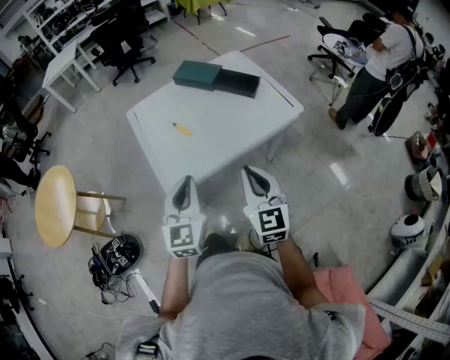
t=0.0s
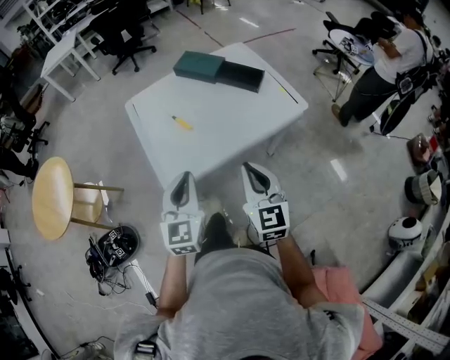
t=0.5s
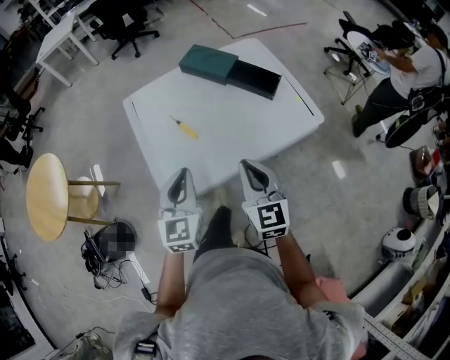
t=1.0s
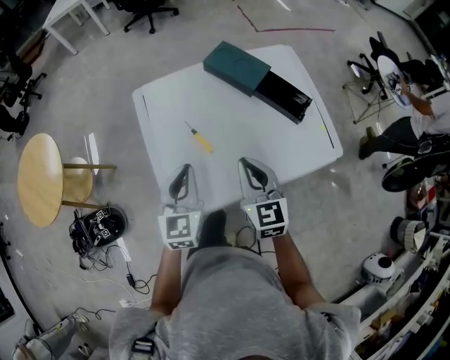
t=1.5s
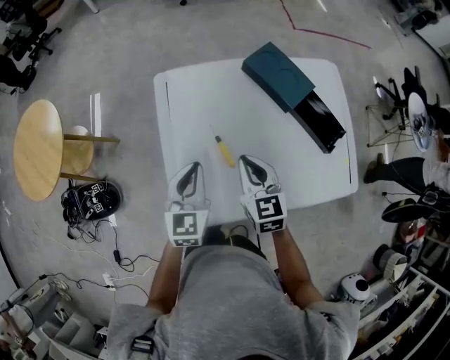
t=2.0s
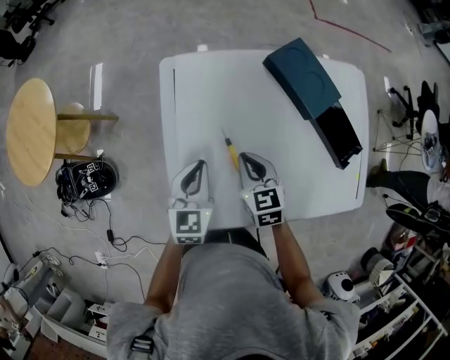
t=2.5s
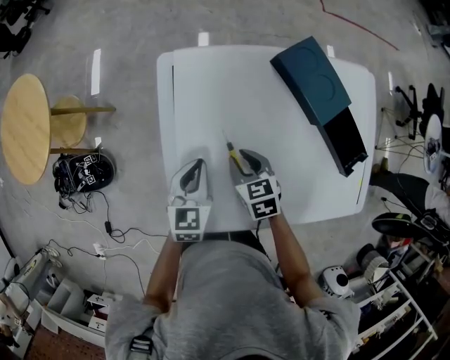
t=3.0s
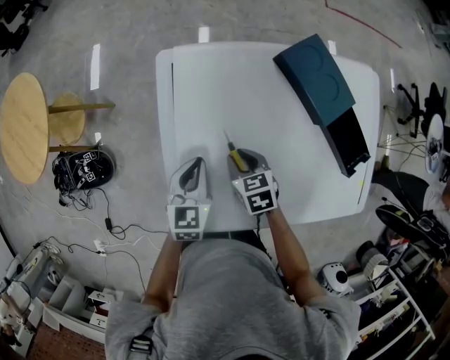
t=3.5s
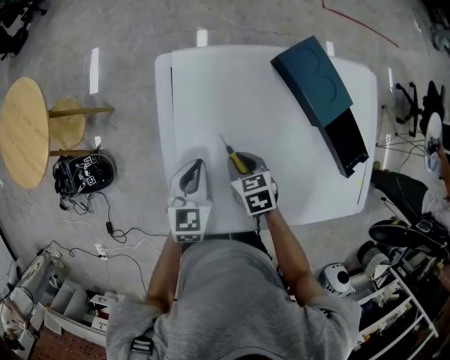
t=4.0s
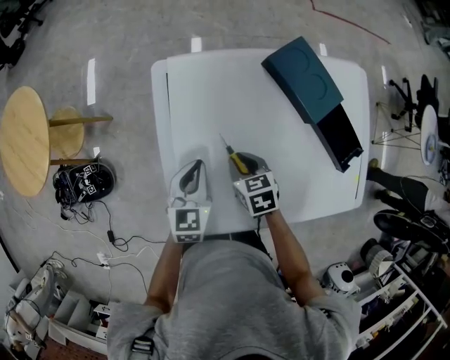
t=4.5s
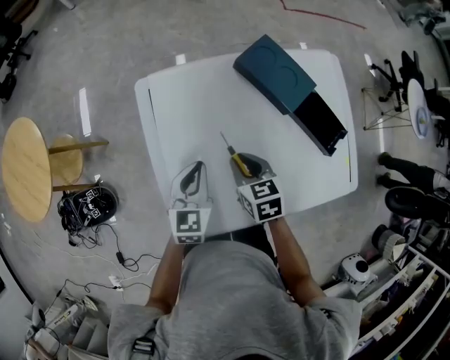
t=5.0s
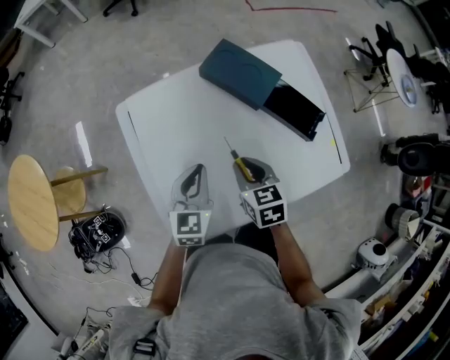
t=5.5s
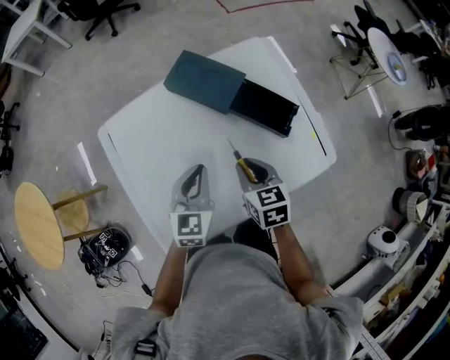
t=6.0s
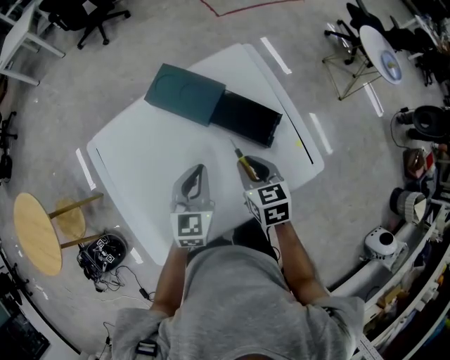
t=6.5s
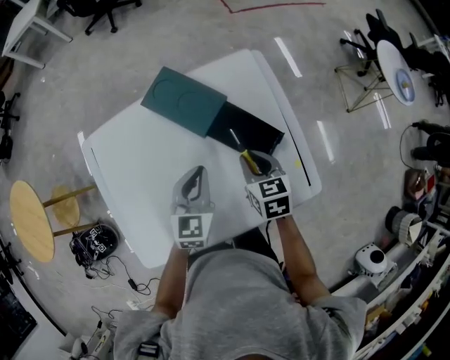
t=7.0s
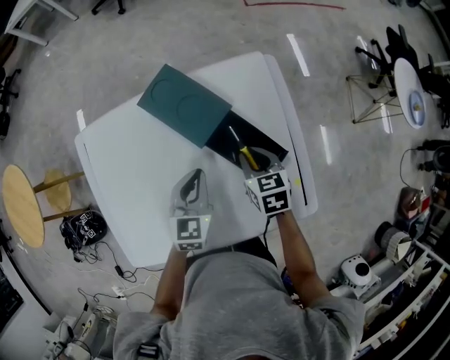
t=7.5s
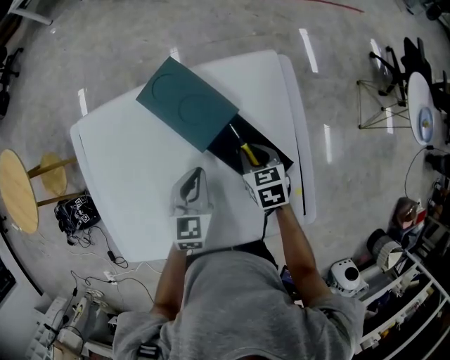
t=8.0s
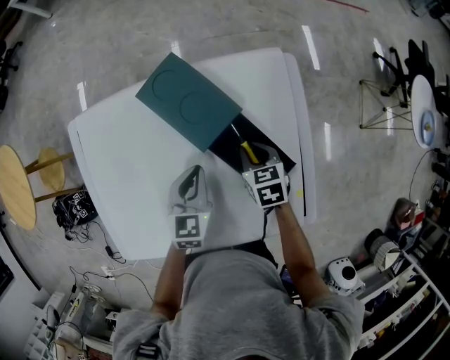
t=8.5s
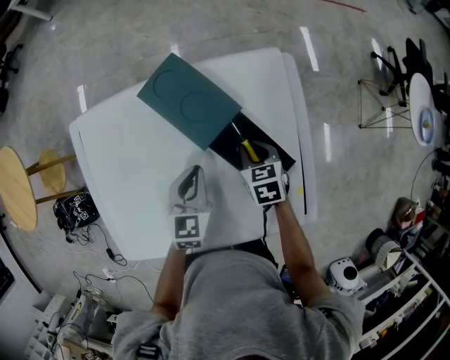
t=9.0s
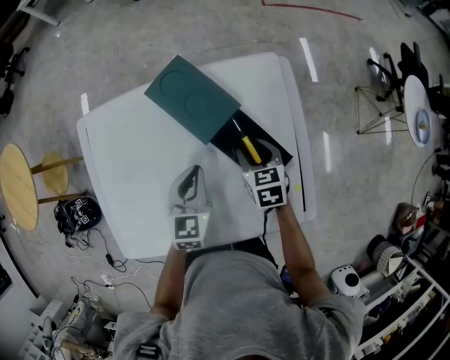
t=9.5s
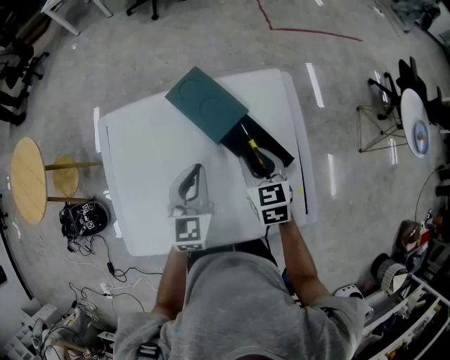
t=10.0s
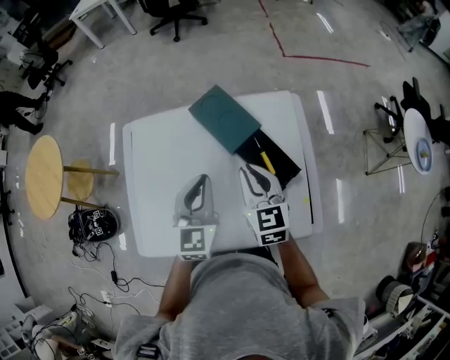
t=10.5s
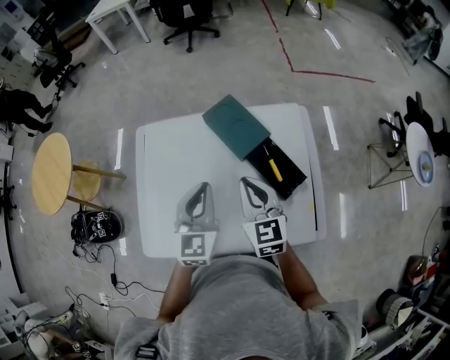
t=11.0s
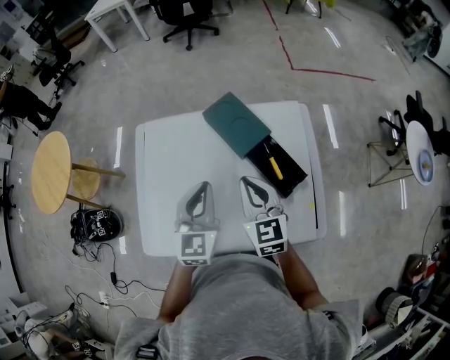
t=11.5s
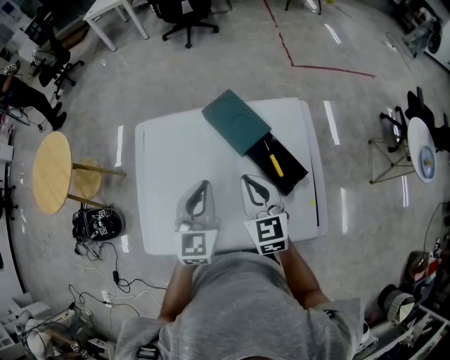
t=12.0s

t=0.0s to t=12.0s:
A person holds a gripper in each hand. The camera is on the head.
t=0.0s to t=2.0s: Both grippers move forward, approximately 35 cm. The left gripper swivels about 20 degrees. Meanwhile the right gripper rotates about 30 degrees.
t=2.0s to t=4.0s: The right gripper heads downward, covering about 15 cm, and turns by about 30 degrees; the left gripper travels downward and forward by roughly 15 cm.
t=4.0s to t=6.0s: The left gripper changes place by roughly 25 cm, and swivels about 30 degrees, while the right gripper shifts by approximately 25 cm, and changes its angle by roughly 30 degrees.
t=6.0s to t=8.0s: The left gripper shifts some 20 cm to the right, forward and downward; the right gripper heads forward, to the right and downward, covering roughly 25 cm, and swivels approximately 20 degrees.
t=8.0s to t=10.0s: The two grippers go approximately 10 cm upward.
t=10.0s to t=12.0s: Both grippers travel together upward, to the left and backward, roughly 15 cm. The right gripper closes up.

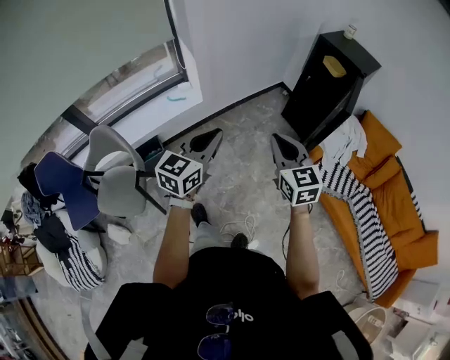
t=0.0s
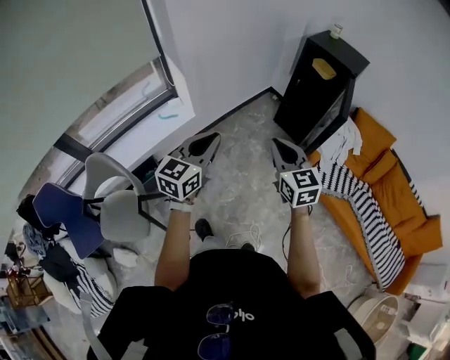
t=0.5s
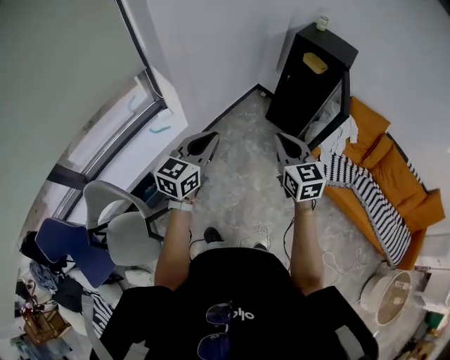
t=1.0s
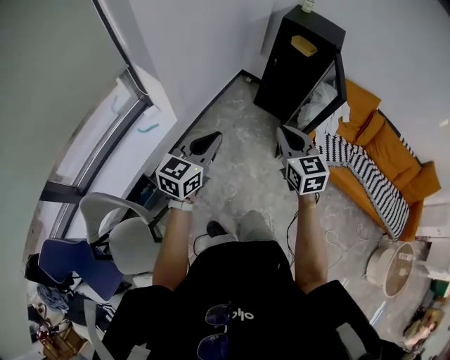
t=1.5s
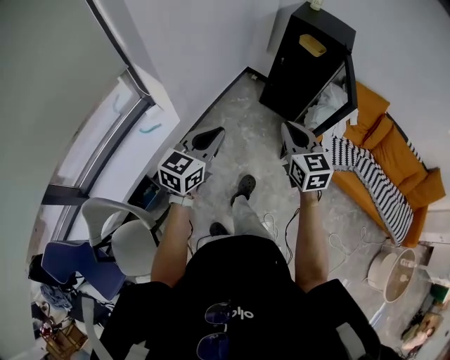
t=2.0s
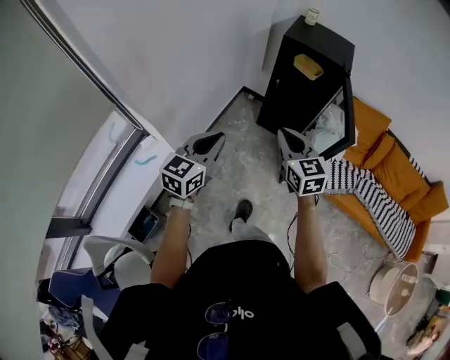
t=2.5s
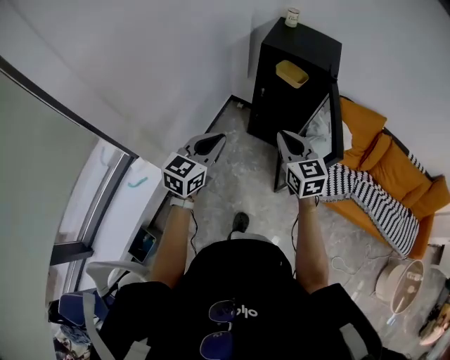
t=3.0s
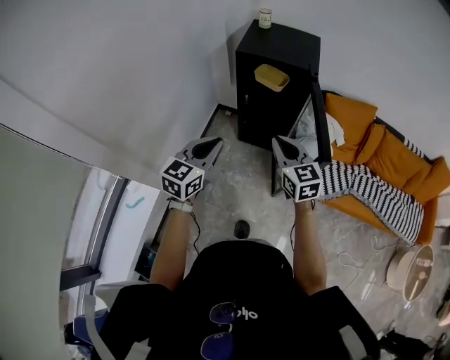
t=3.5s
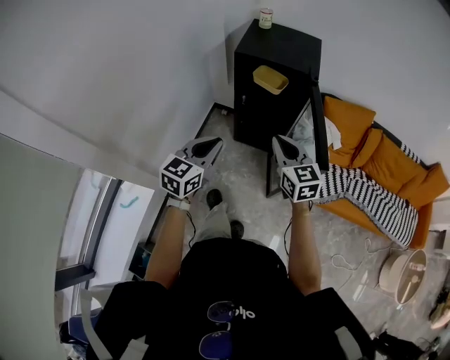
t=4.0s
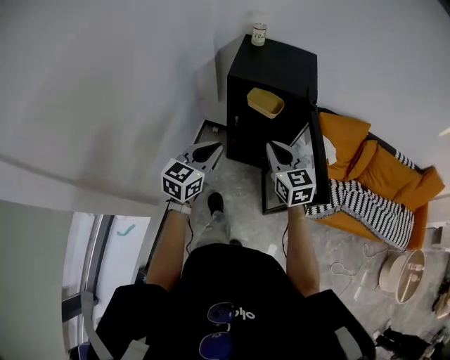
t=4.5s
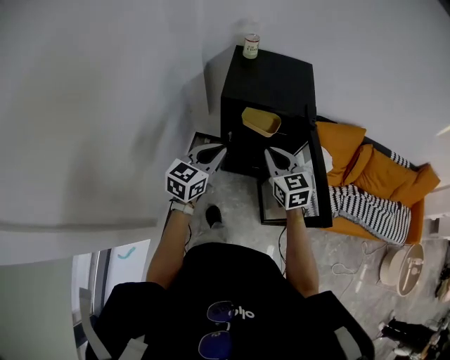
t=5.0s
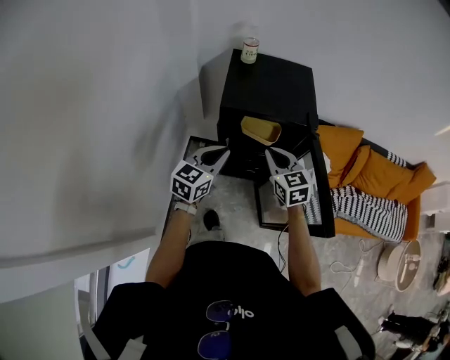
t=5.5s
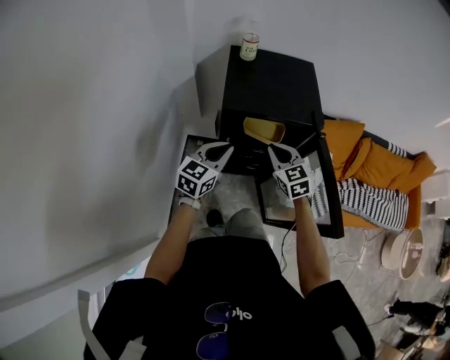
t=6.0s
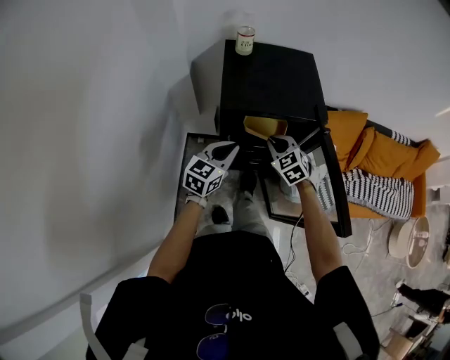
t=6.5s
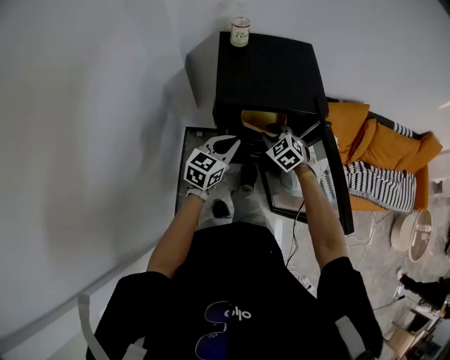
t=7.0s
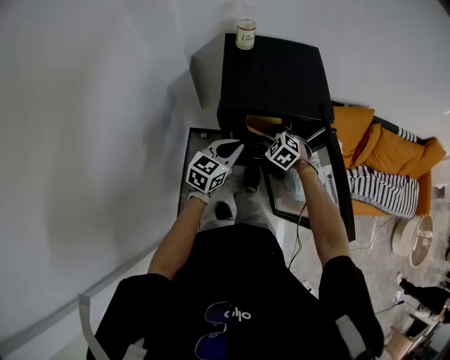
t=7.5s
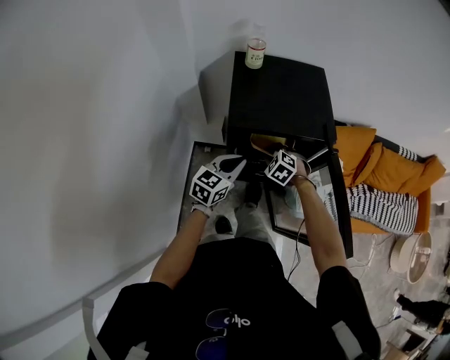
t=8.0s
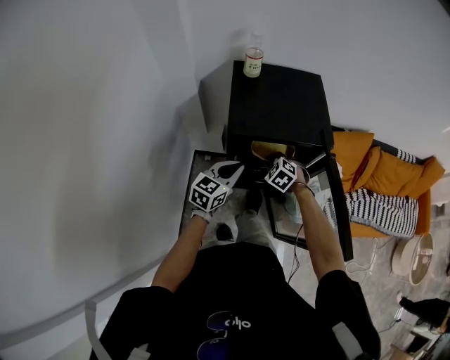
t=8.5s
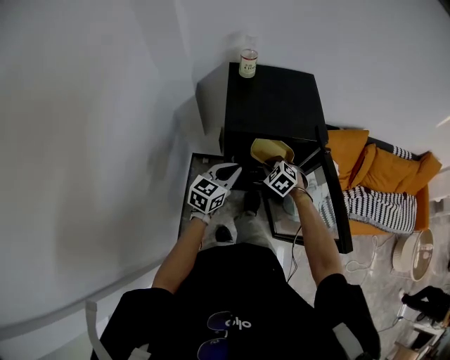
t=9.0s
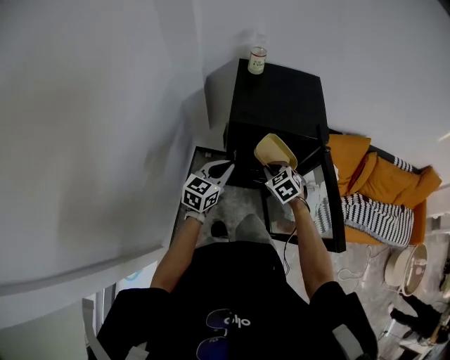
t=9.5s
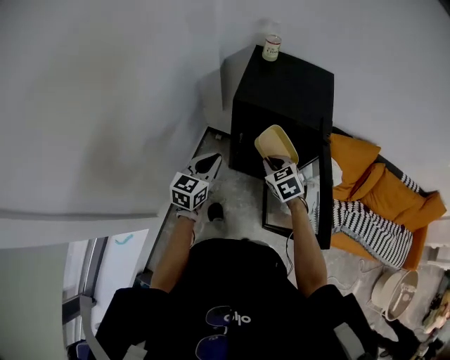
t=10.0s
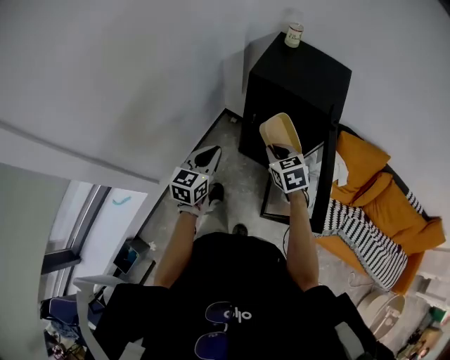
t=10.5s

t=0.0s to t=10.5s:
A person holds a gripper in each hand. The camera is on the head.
t=0.0s to t=2.0s: The two grippers go about 20 cm forward and to the left. The left gripper rotates some 20 degrees, while the right gripper swivels about 20 degrees.
t=2.0s to t=4.0s: The grippers both shift forward by roughly 35 cm.
t=4.0s to t=6.5s: The left gripper shifts some 35 cm forward. The right gripper heads forward and downward, covering some 35 cm, and turns by approximately 30 degrees.
t=6.5s to t=8.5s: The right gripper heads downward, covering some 10 cm, and swivels approximately 20 degrees.
t=8.5s to t=10.5s: The left gripper moves approximately 25 cm, and changes its angle by about 40 degrees, while the right gripper shifts by roughly 25 cm, and turns by about 30 degrees.

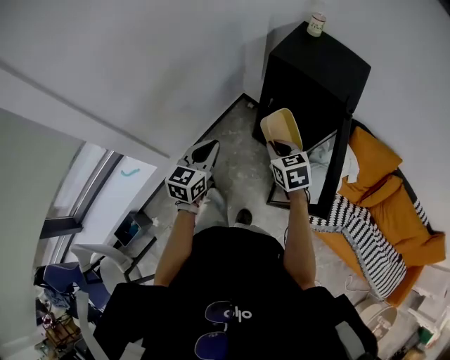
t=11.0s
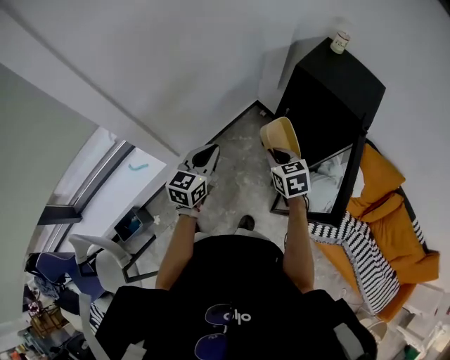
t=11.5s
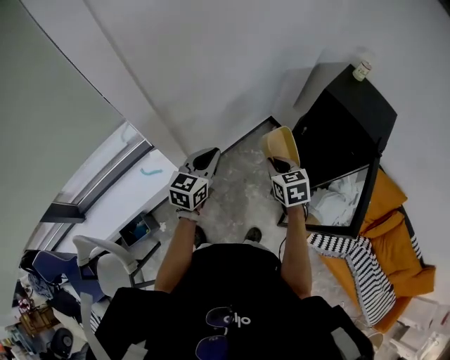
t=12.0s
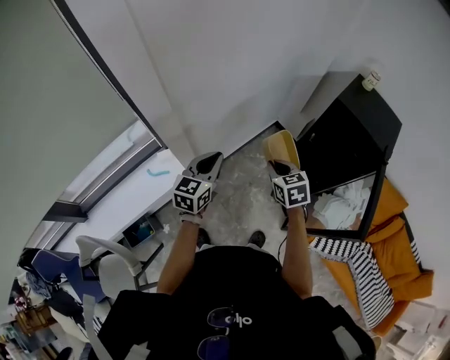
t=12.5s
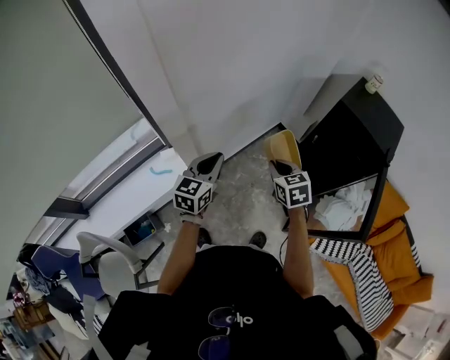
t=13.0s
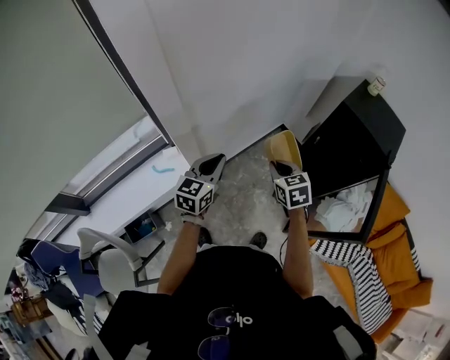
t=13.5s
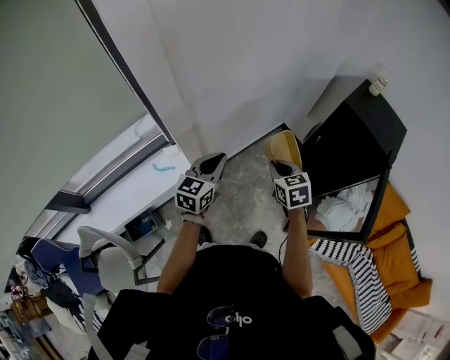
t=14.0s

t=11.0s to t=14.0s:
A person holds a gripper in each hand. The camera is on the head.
t=11.0s to t=12.5s: Both grippers travel together to the left, some 25 cm.
t=12.5s to t=14.0s: The grippers stay close to where they were, moving slightly.

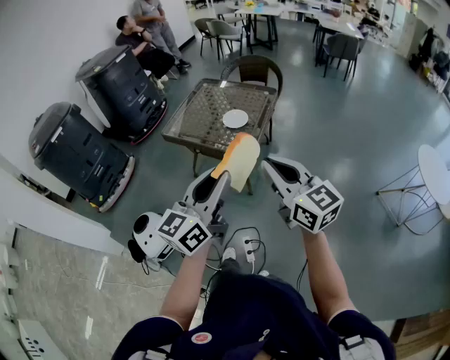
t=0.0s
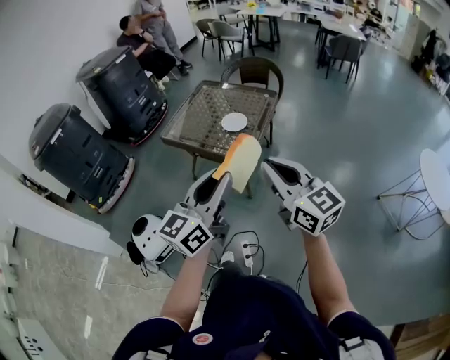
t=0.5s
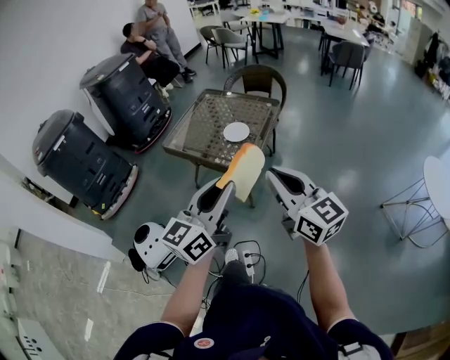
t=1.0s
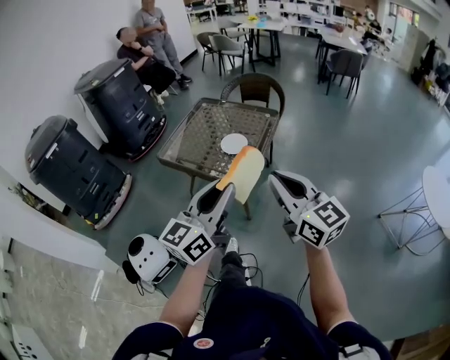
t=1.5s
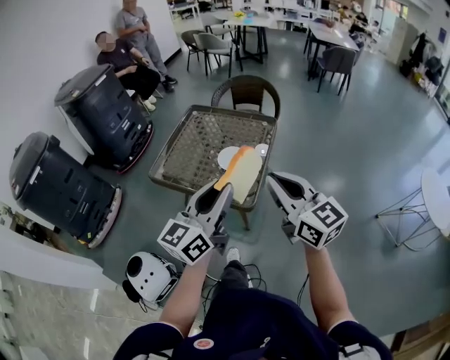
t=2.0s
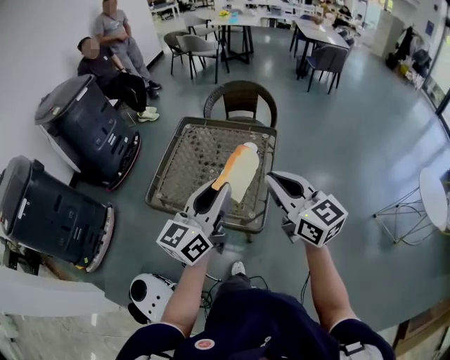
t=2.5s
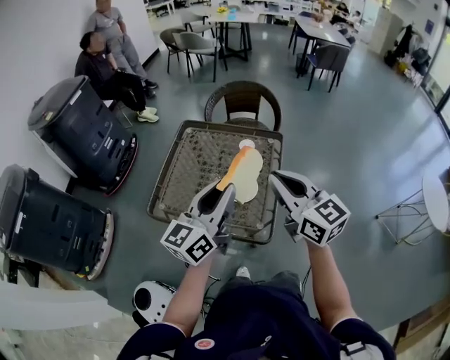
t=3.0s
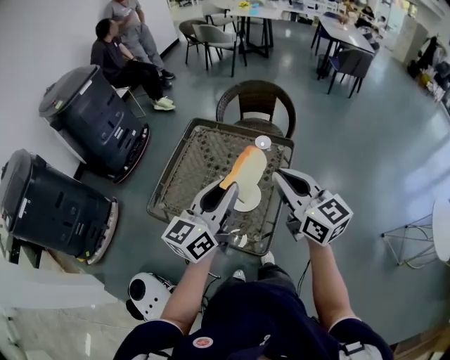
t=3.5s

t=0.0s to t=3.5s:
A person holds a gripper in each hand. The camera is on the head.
t=0.0s to t=2.0s: The grippers both shift forward by roughly 25 cm.
t=2.0s to t=3.5s: Both grippers travel together forward, some 25 cm.
